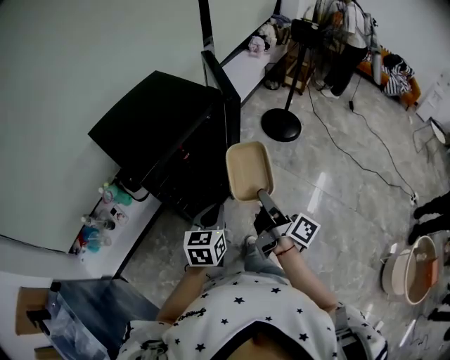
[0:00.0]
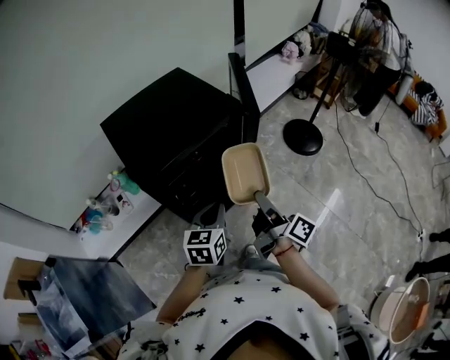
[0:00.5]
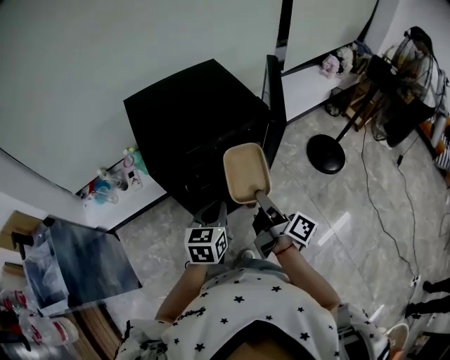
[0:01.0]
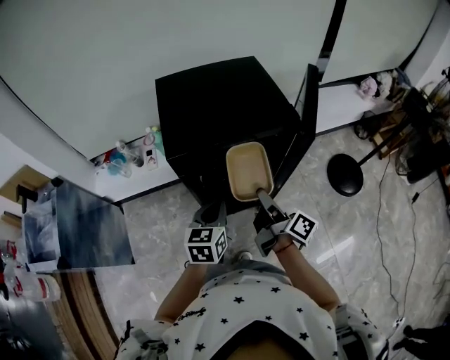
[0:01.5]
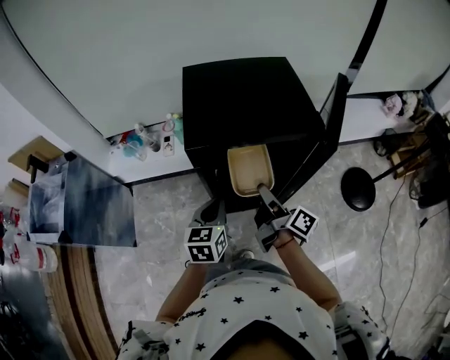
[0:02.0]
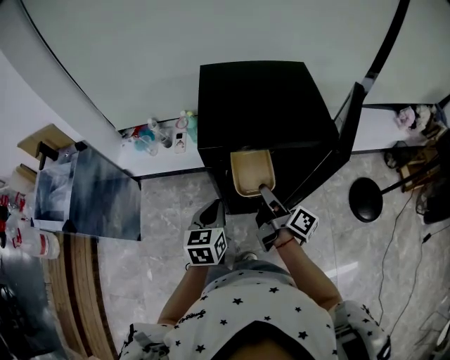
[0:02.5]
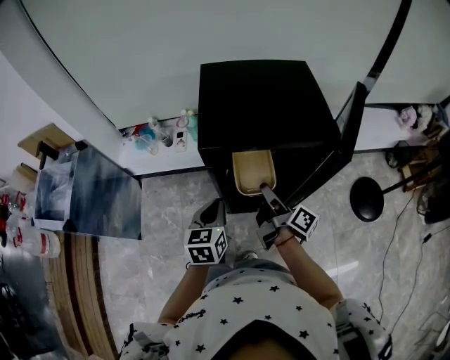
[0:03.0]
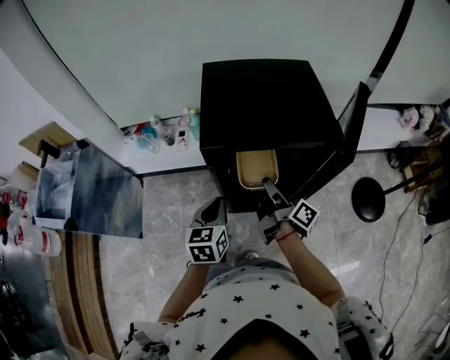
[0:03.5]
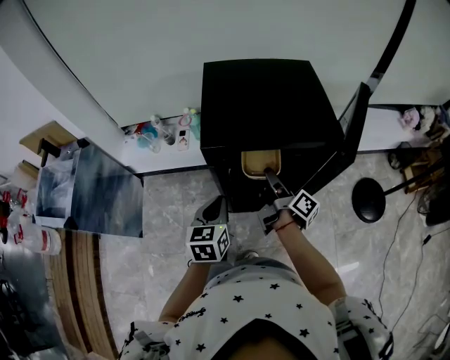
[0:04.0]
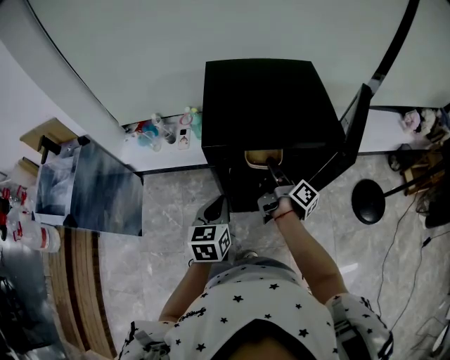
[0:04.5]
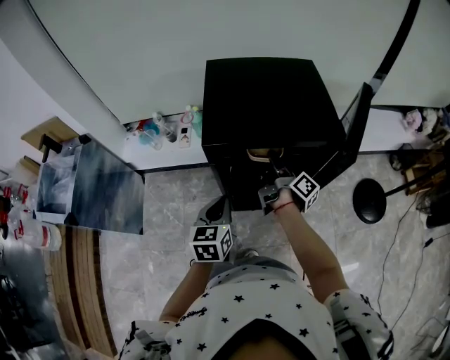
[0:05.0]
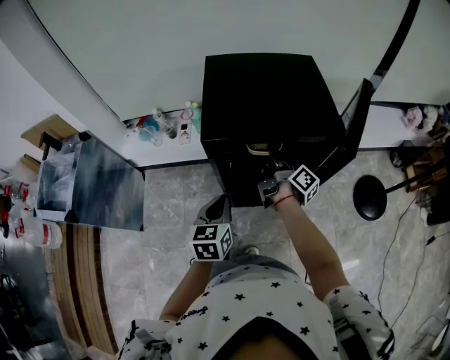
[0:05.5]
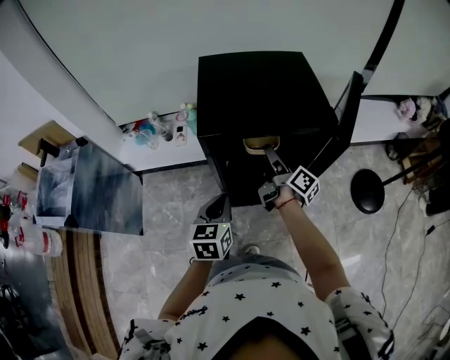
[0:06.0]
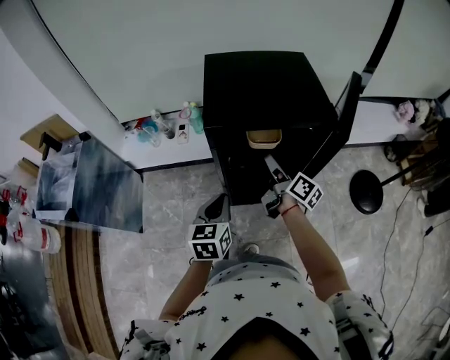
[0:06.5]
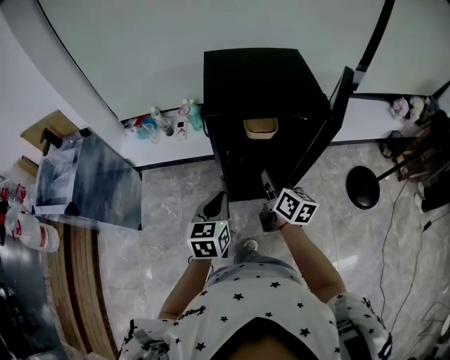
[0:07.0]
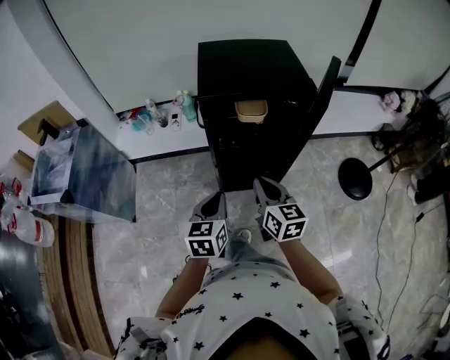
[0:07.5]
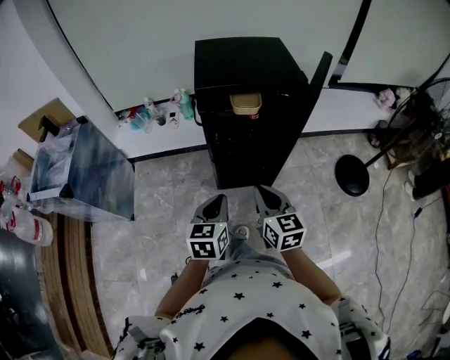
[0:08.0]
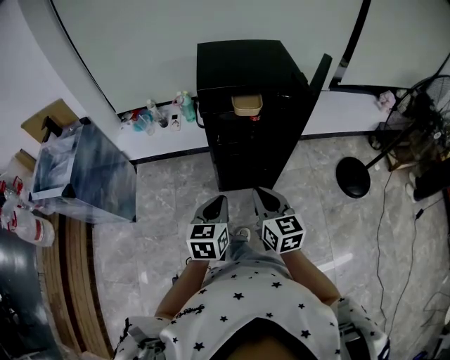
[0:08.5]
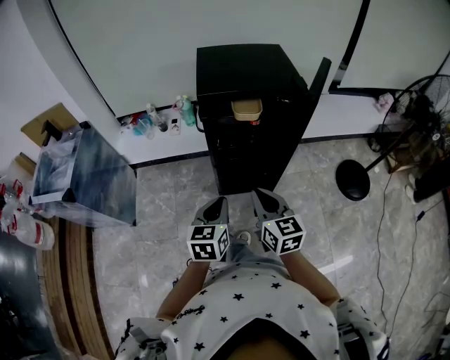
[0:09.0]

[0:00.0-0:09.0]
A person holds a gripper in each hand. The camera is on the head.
0:00.0 to 0:02.0: The left gripper shifts by some 10 cm, and rotates roughly 50 degrees. The right gripper ends up approximately 20 cm from where it was, and turns by approximately 50 degrees.
0:02.0 to 0:04.5: The right gripper goes approximately 10 cm forward.
0:04.5 to 0:07.0: Both grippers move backward, about 10 cm. The right gripper twists approximately 50 degrees counterclockwise, seen from behind, and closes up.
0:07.0 to 0:09.0: Both grippers move backward, some 15 cm. The right gripper rotates approximately 30 degrees.

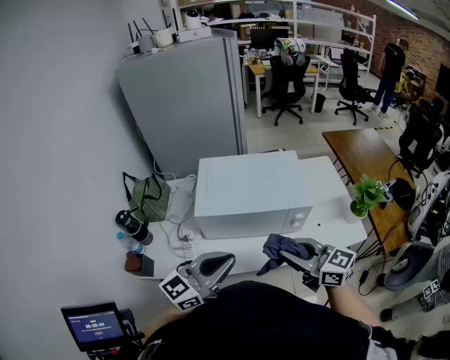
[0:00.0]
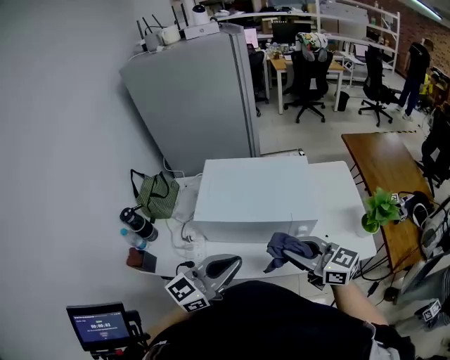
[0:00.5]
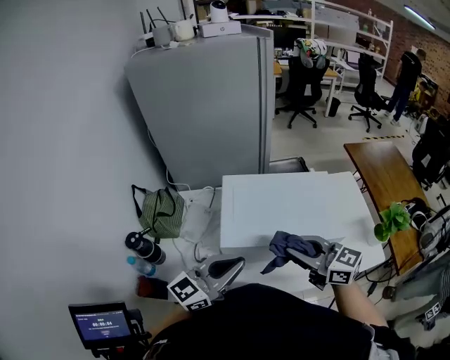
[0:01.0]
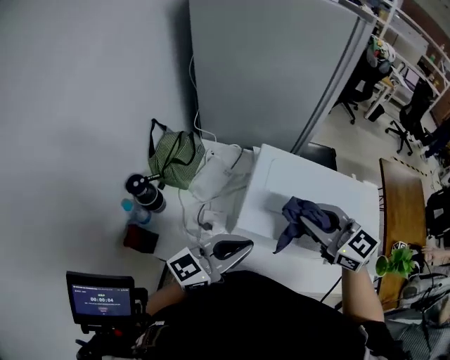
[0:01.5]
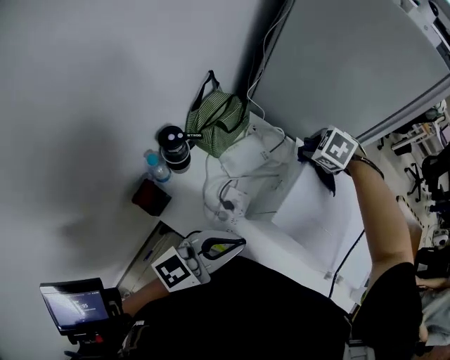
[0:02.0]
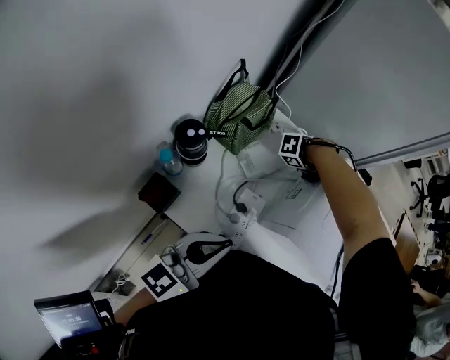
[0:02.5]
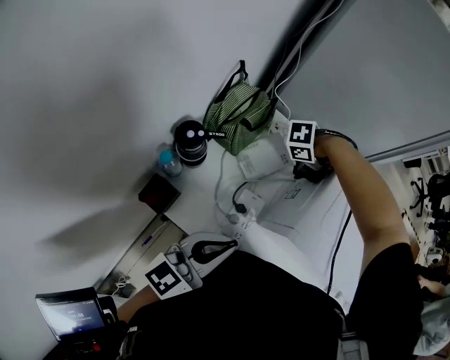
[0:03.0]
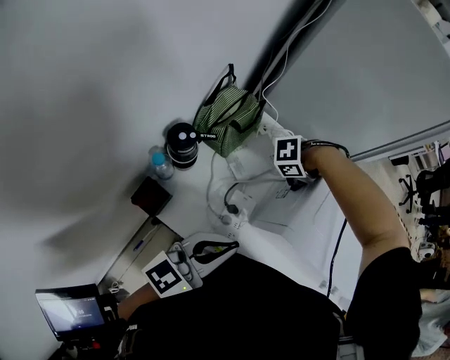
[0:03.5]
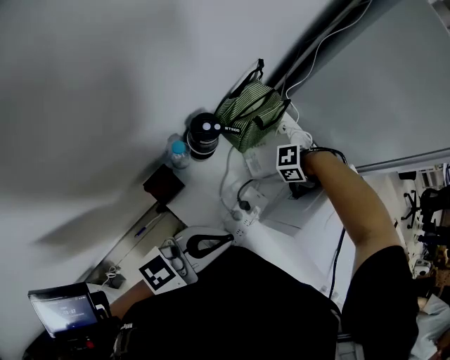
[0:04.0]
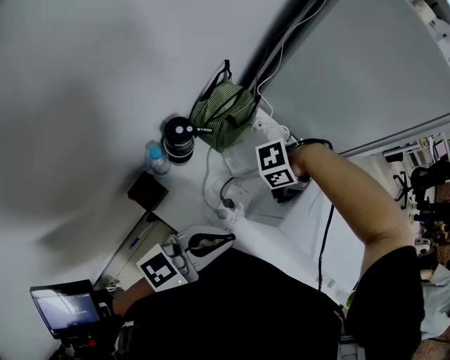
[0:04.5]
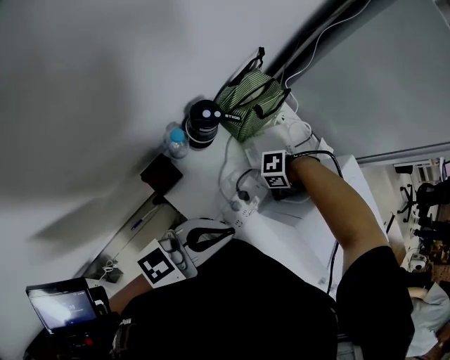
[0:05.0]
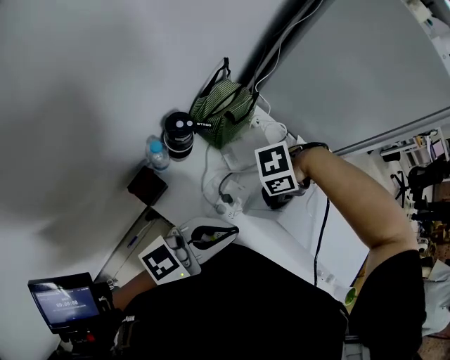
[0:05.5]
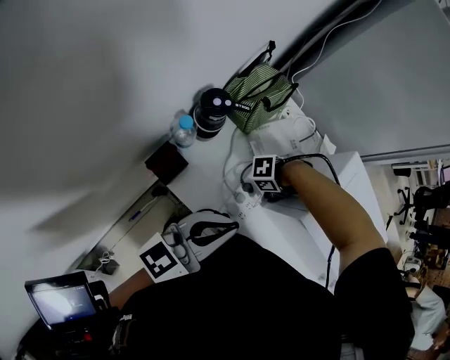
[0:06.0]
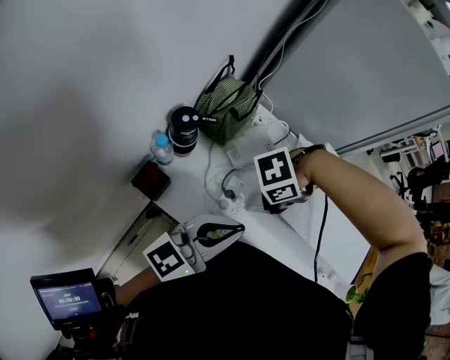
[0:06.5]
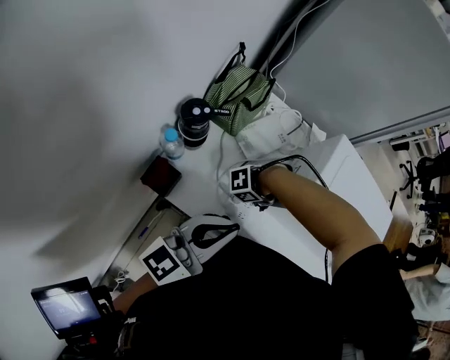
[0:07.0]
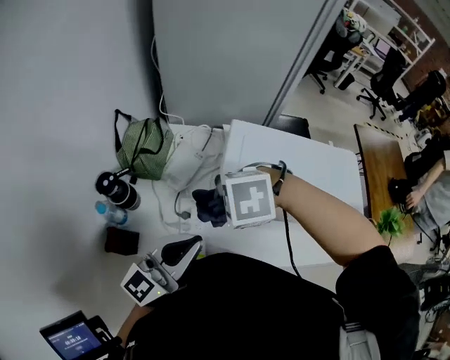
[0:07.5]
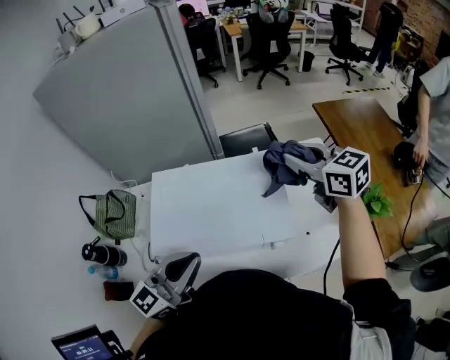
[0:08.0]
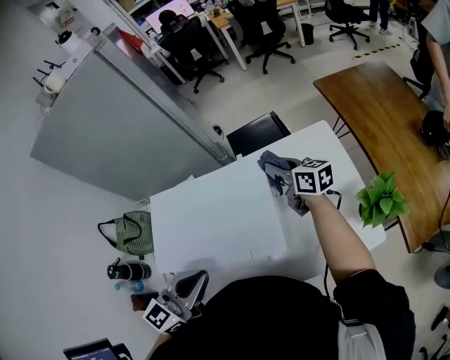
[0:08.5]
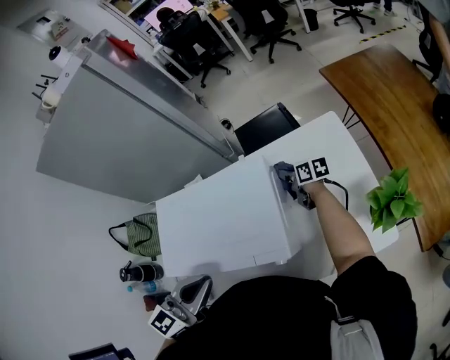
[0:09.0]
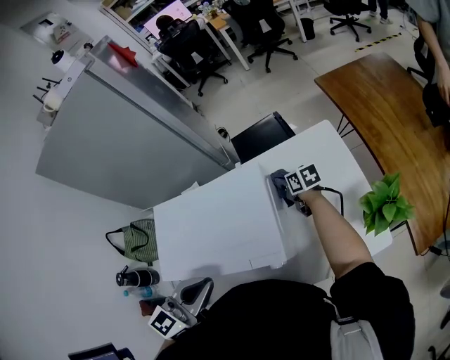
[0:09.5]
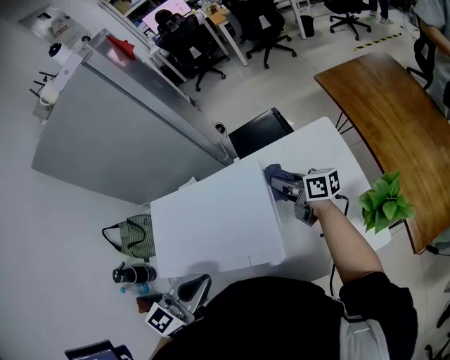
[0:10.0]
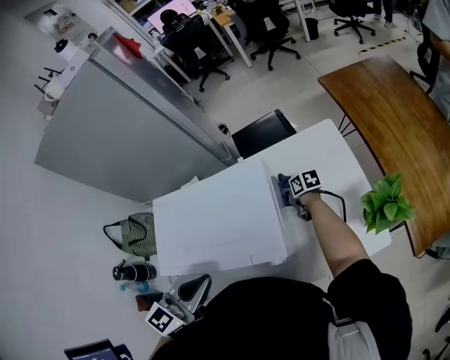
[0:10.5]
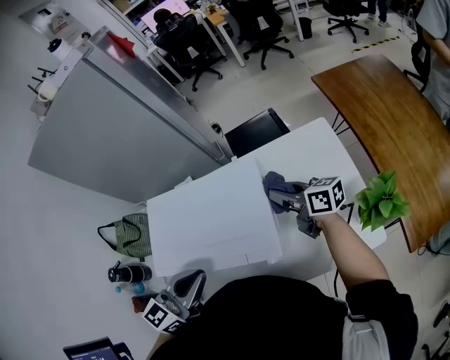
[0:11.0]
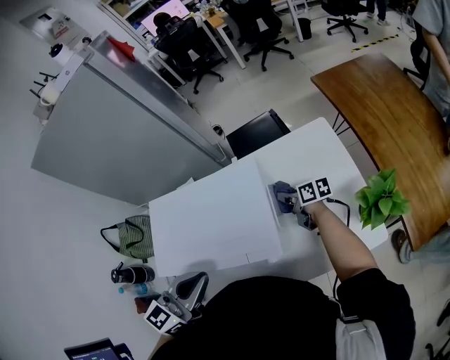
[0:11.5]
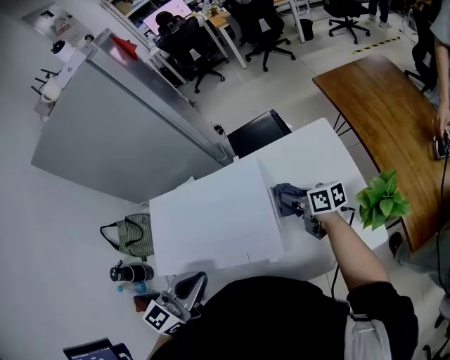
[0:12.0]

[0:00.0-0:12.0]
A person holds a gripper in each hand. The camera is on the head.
0:00.0 to 0:02.0: The right gripper ends up about 50 cm from where it was, and tilts its fingers about 80 degrees downward; the left gripper moves about 25 cm, and changes its angle by some 30 degrees.
0:02.0 to 0:04.0: The right gripper goes up and down, approximately 15 cm each way, reversing 2 times, and tips its fingers upward by some 30 degrees, while the left gripper changes place by about 10 cm.
0:04.0 to 0:06.0: The right gripper goes up and down, roughly 20 cm each way, reversing 3 times.
0:06.0 to 0:08.0: The left gripper changes place by roughly 35 cm, and swivels approximately 30 degrees. Meanwhile the right gripper swings up and down, approximately 40 cm each way, with 2 reversals, and tips its fingers upward by some 30 degrees.
0:08.0 to 0:10.0: The right gripper is displaced downward by approximately 20 cm, and swivels some 40 degrees. Meanwhile the left gripper moves to the right, roughly 5 cm, and swivels about 20 degrees.
0:10.0 to 0:12.0: The right gripper swings up and down, about 25 cm each way, with 3 reversals.

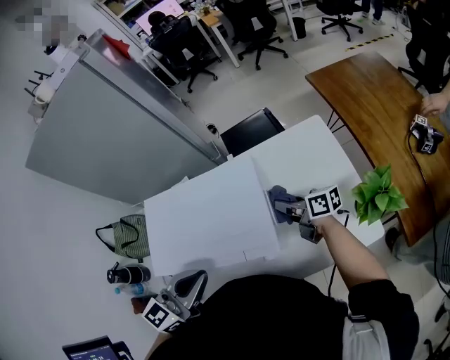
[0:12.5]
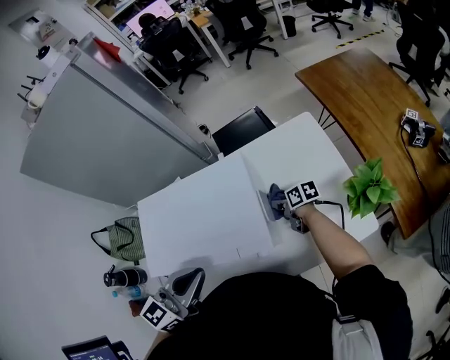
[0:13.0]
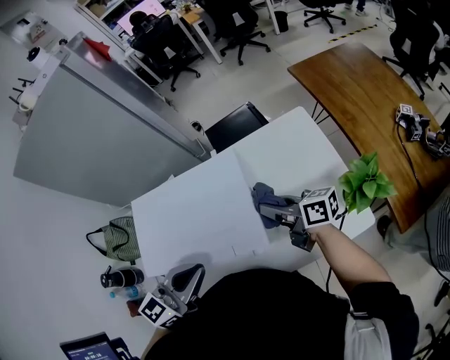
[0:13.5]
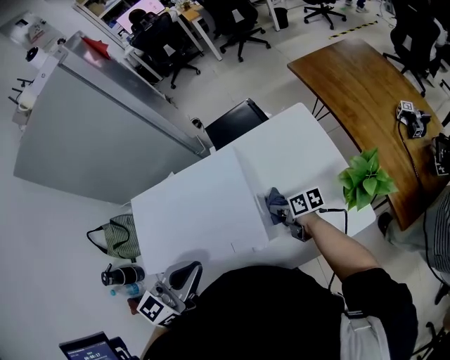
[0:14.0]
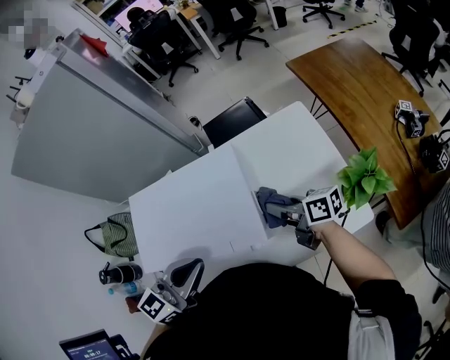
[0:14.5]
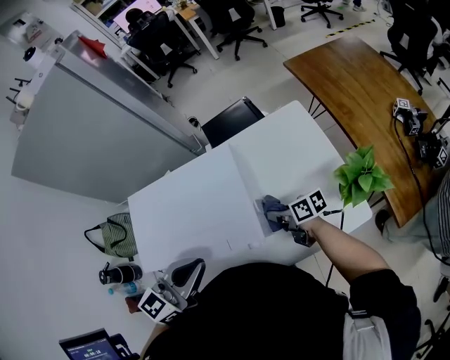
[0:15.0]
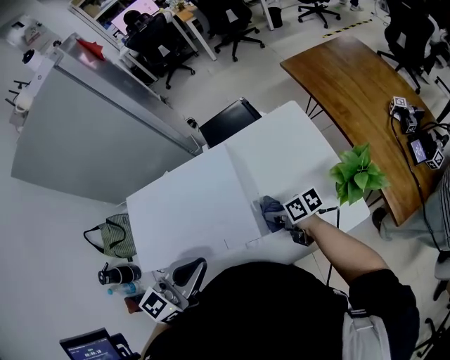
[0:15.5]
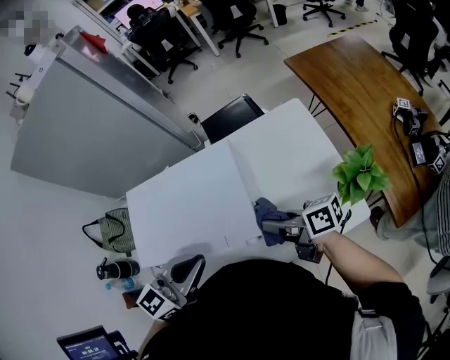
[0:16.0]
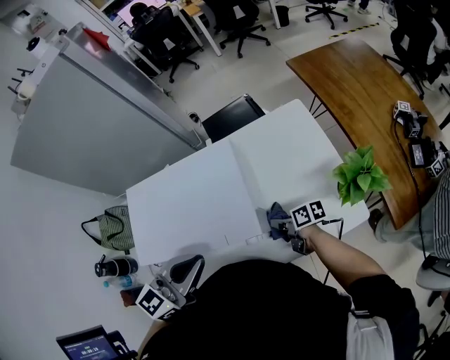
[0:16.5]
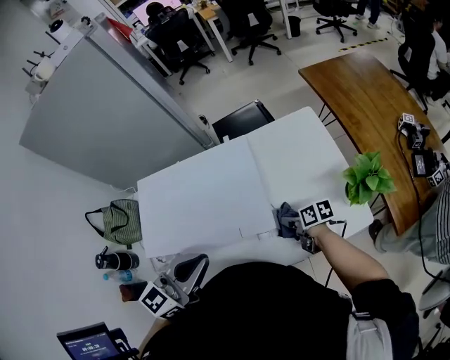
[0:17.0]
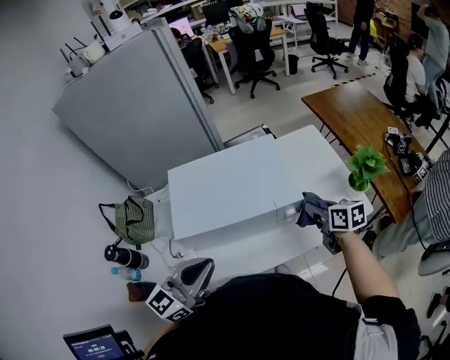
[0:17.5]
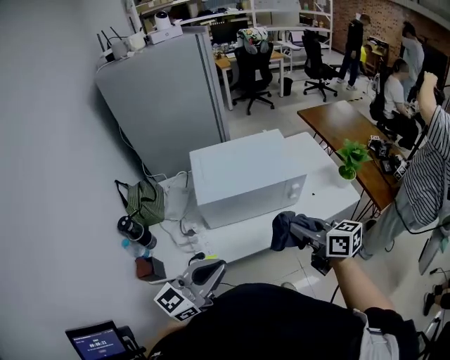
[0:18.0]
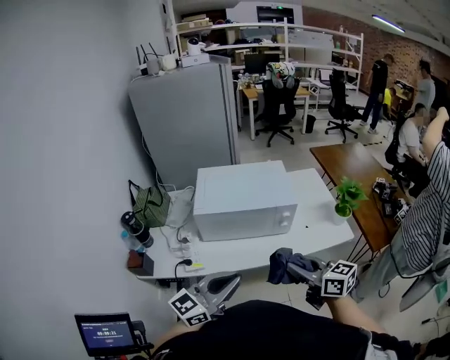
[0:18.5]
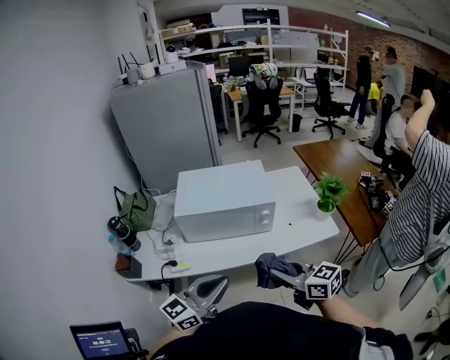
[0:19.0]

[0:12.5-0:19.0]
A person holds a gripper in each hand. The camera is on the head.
0:12.5 to 0:14.5: The right gripper swings up and down, approximately 20 cm each way, with 3 reversals.
0:14.5 to 0:17.0: The right gripper moves up and down over approximately 20 cm, changing direction 2 times, and swivels roughly 30 degrees.
0:17.0 to 0:19.0: The left gripper is displaced backward by some 25 cm; the right gripper is displaced backward and upward by roughly 40 cm, and rotates around the line of its fingers by roughly 40 degrees, counterclockwise from behind.
